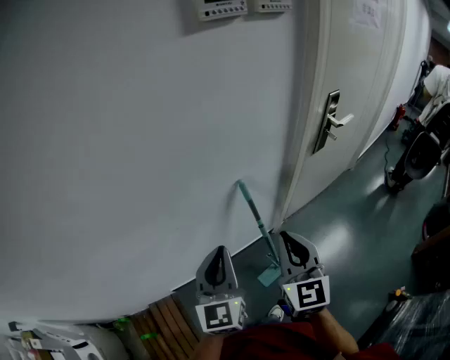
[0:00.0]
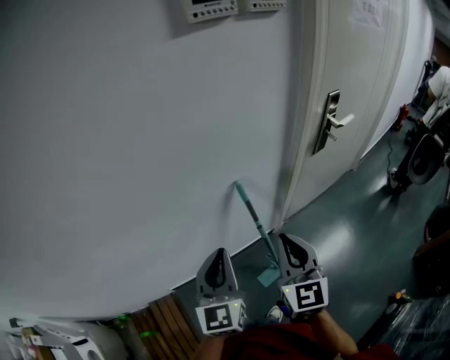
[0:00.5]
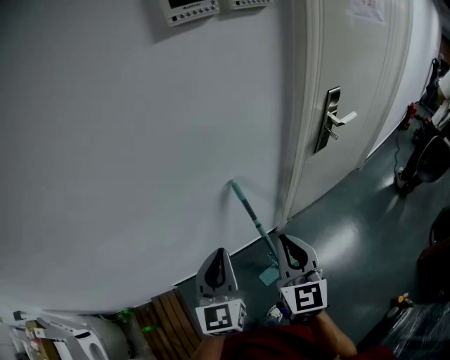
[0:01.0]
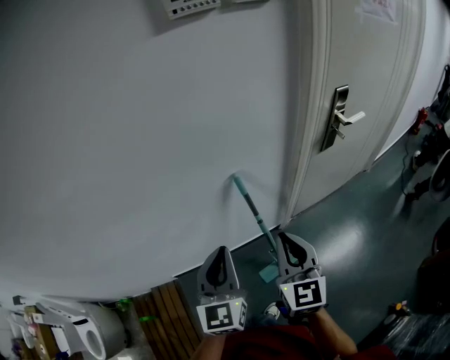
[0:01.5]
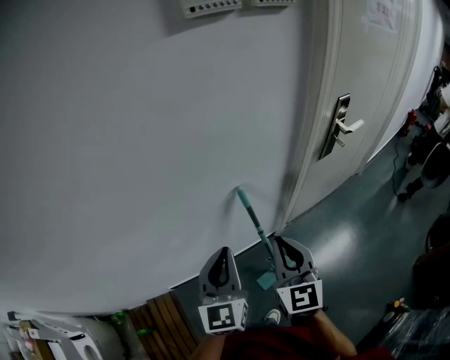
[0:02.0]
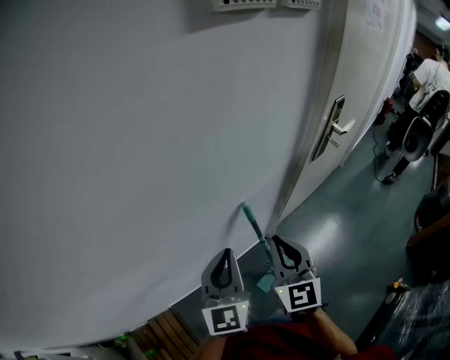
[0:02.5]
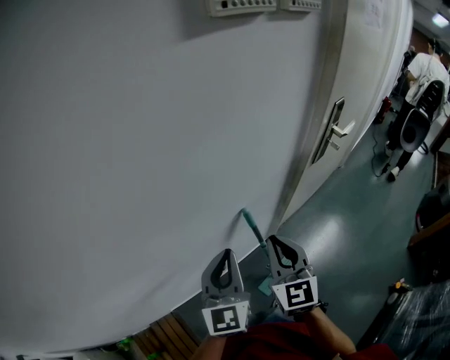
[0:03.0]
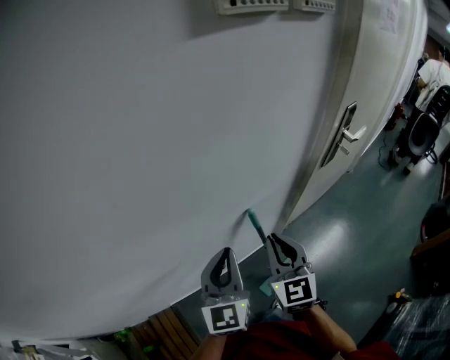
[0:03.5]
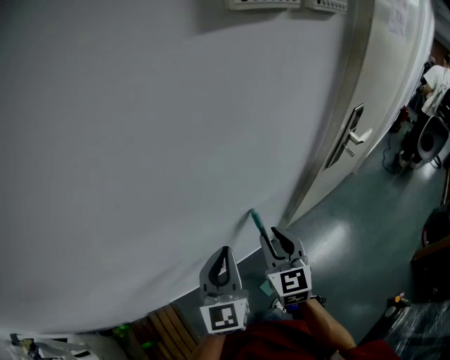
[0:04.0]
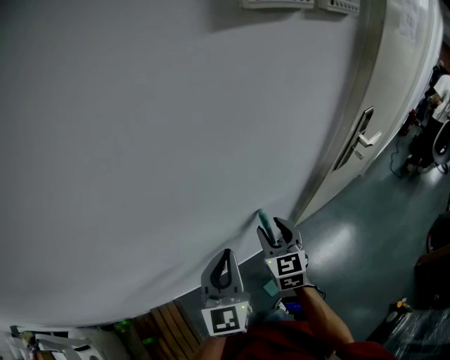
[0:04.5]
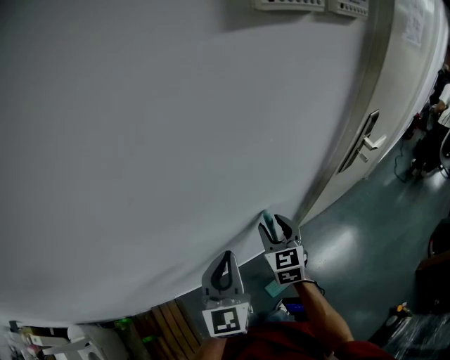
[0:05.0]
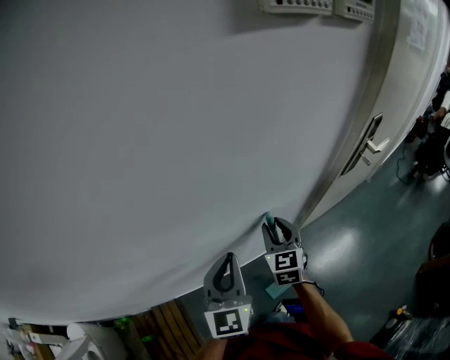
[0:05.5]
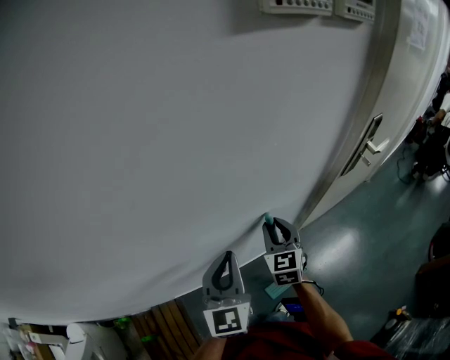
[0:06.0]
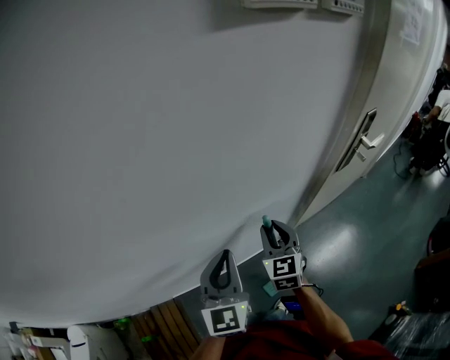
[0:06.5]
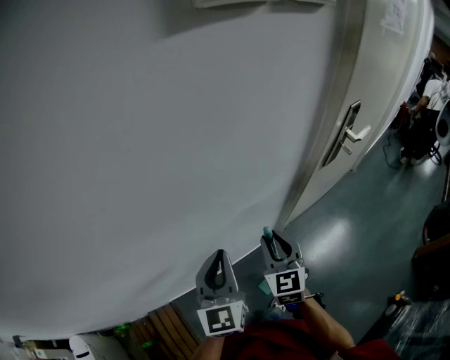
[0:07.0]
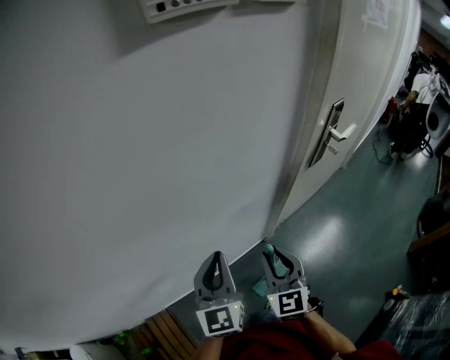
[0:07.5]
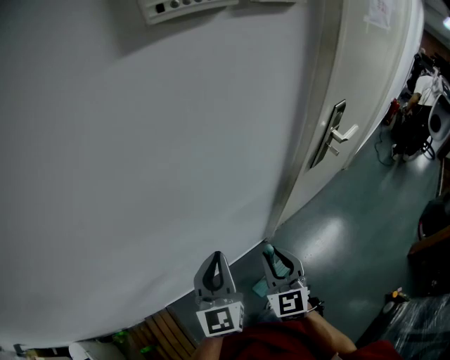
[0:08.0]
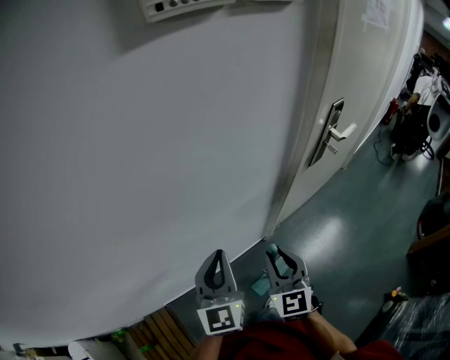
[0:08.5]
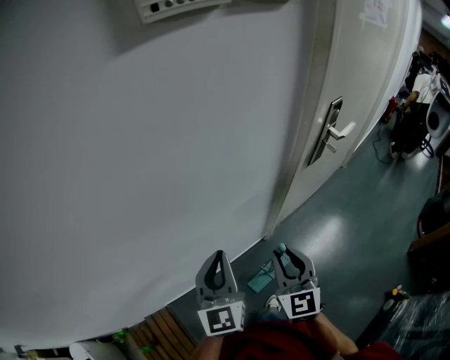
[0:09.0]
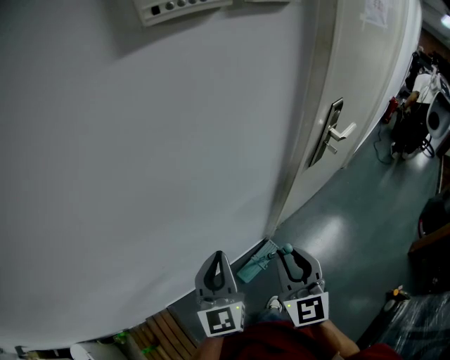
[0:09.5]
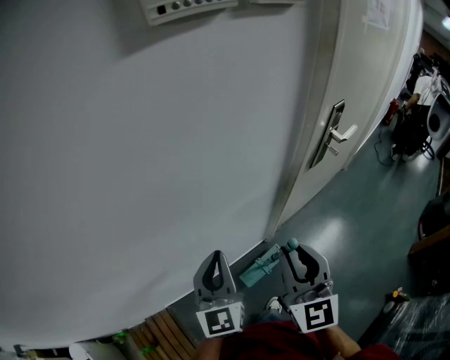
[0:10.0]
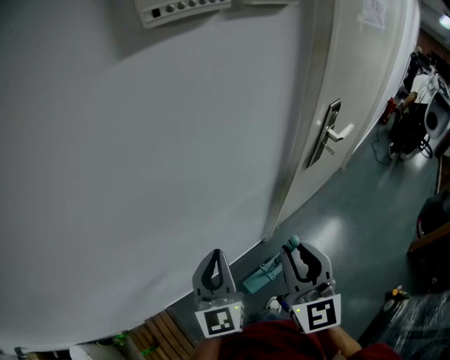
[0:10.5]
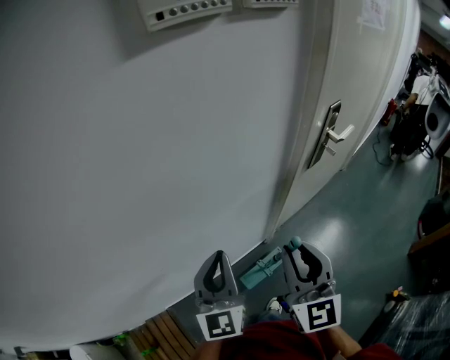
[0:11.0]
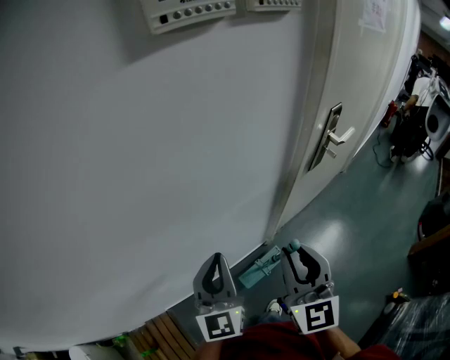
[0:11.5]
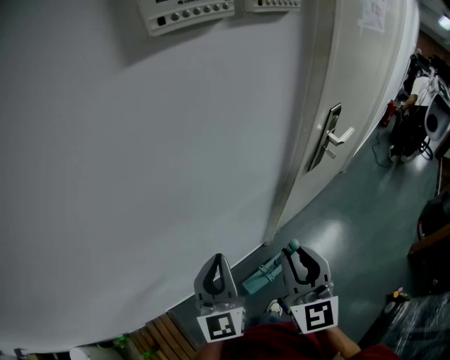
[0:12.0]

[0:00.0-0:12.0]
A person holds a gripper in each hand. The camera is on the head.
0:00.0 to 0:02.0: The left gripper moves some 5 cm; the right gripper moves about 5 cm.
0:02.0 to 0:04.0: The left gripper moves forward, roughly 10 cm, while the right gripper heads forward and to the left, covering some 15 cm, and opens up.
0:04.0 to 0:06.0: The right gripper is displaced forward and downward by roughly 10 cm.
0:06.0 to 0:08.0: The left gripper is displaced to the right by about 5 cm. The right gripper moves backward and to the right, some 15 cm.
0:08.0 to 0:10.0: The right gripper travels upward by roughly 10 cm.
0:10.0 to 0:12.0: There are only small adjustments of the grippers.

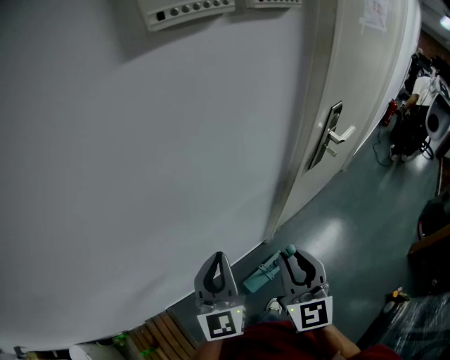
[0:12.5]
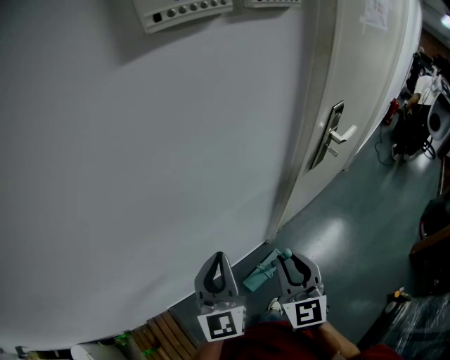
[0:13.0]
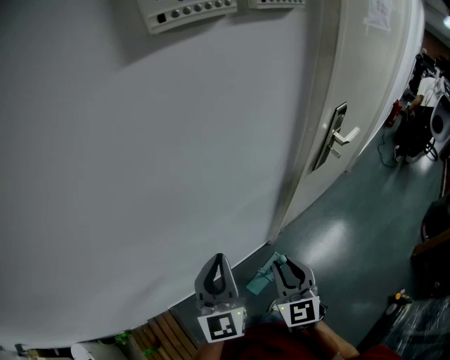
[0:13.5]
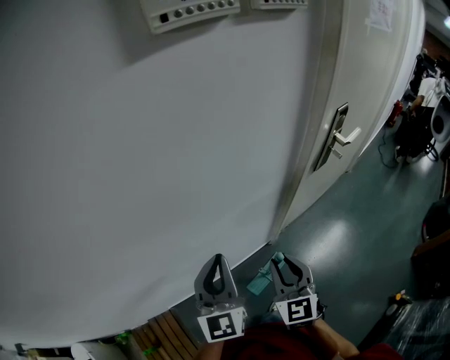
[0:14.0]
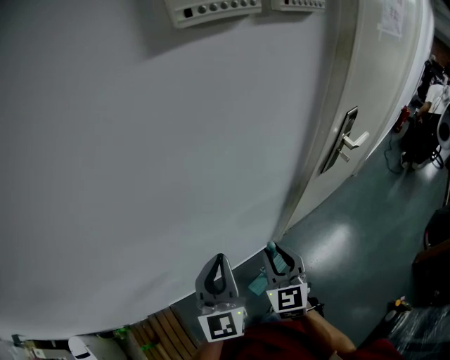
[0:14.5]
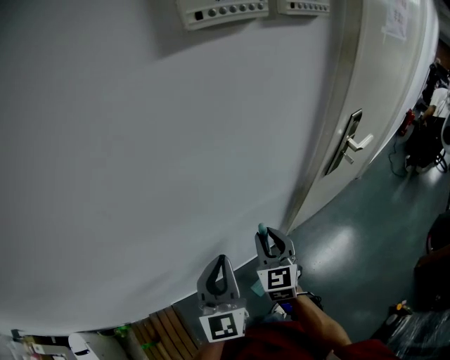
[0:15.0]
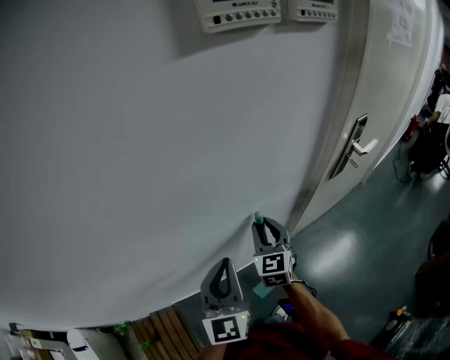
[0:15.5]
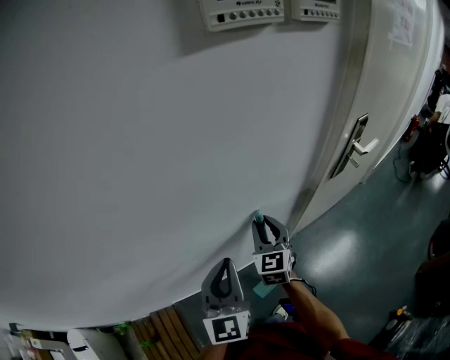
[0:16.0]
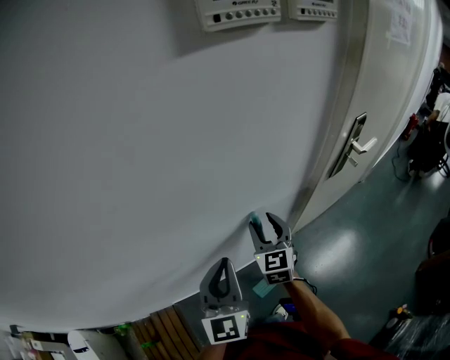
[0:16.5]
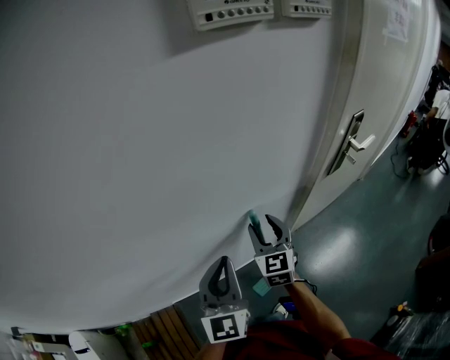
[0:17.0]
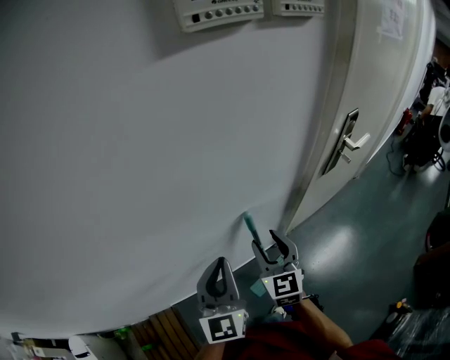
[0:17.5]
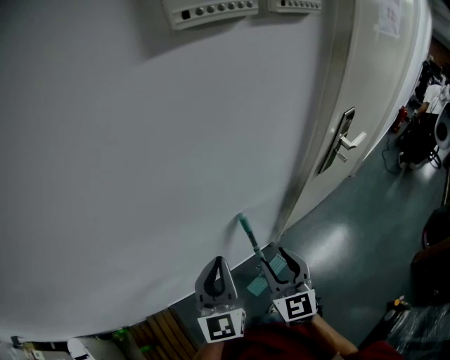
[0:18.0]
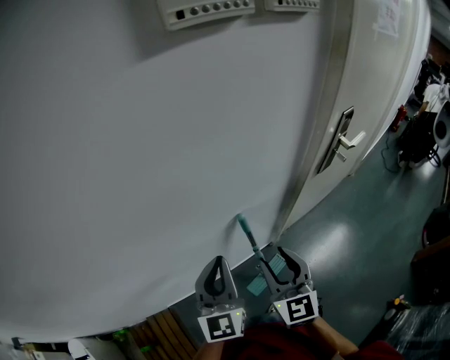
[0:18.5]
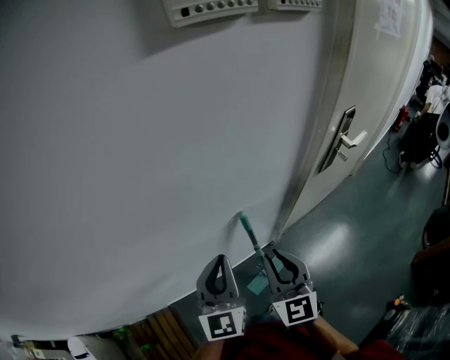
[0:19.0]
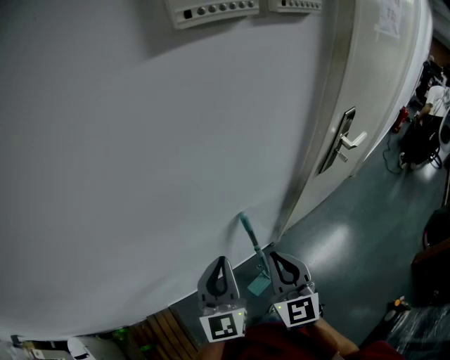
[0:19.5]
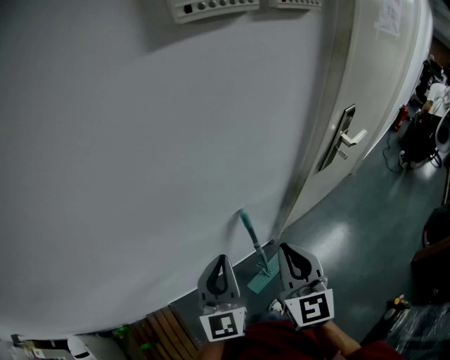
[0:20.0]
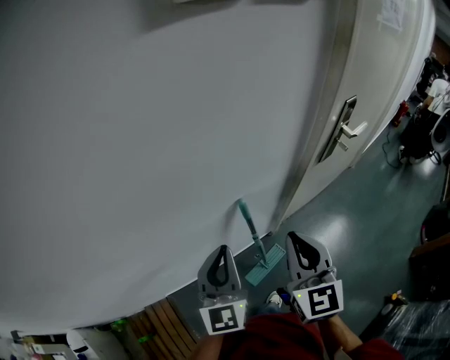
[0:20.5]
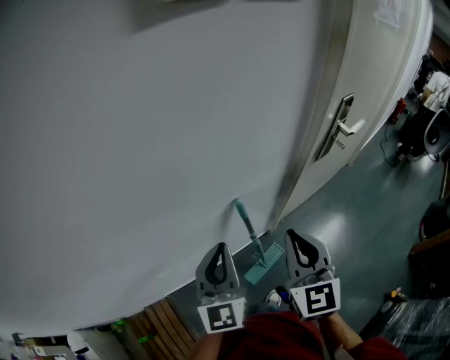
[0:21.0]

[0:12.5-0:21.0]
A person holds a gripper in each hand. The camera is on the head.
0:12.5 to 0:14.5: The right gripper moves downward, about 10 cm.
0:14.5 to 0:16.5: The right gripper goes approximately 10 cm forward, and opens its fingers.
0:16.5 to 0:19.0: The right gripper heads backward, covering some 10 cm, and closes.
0:19.0 to 0:21.0: The right gripper heads upward, covering some 5 cm.

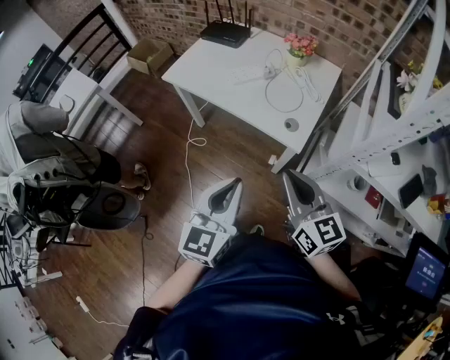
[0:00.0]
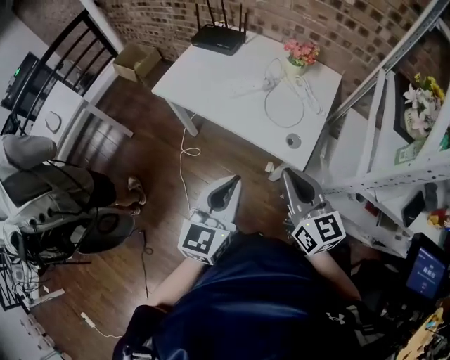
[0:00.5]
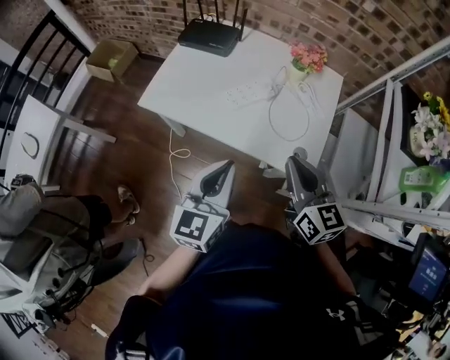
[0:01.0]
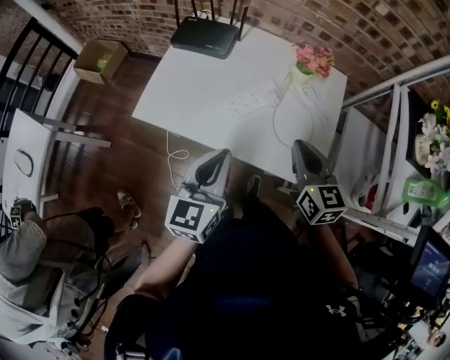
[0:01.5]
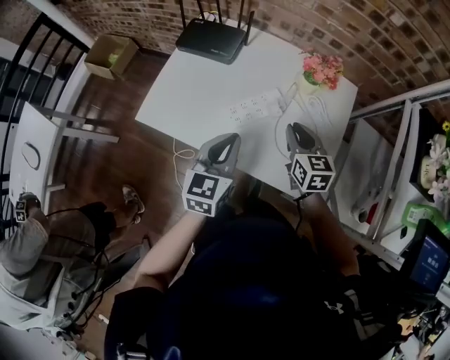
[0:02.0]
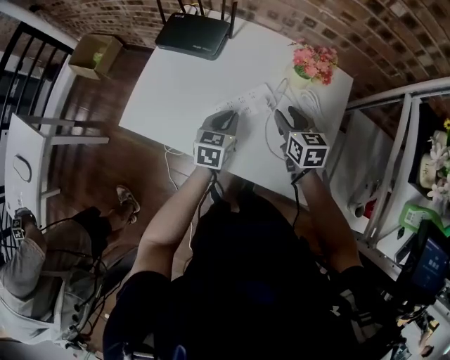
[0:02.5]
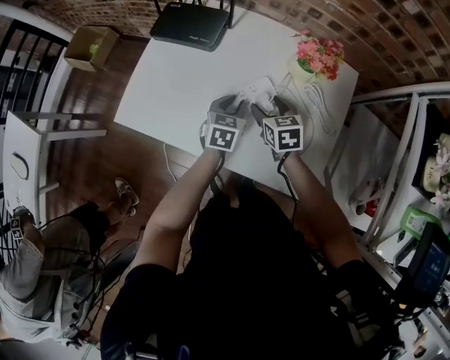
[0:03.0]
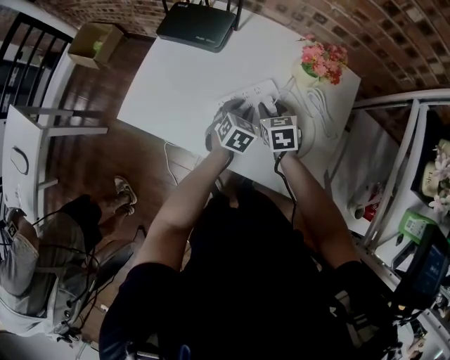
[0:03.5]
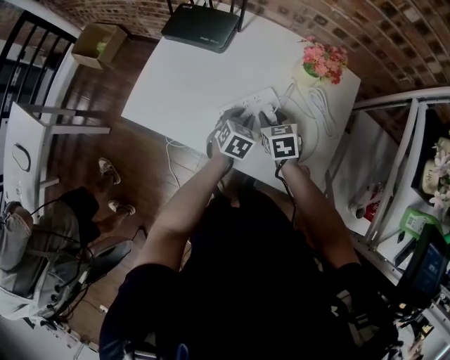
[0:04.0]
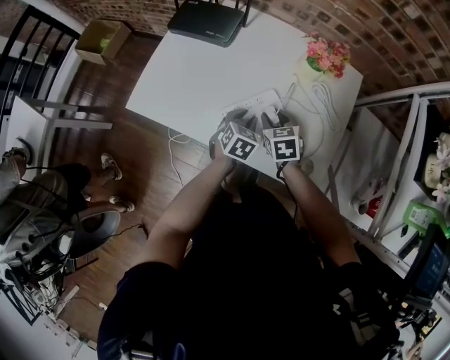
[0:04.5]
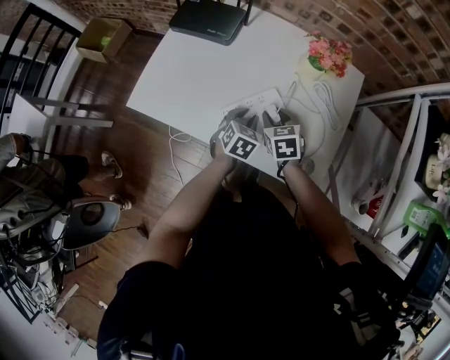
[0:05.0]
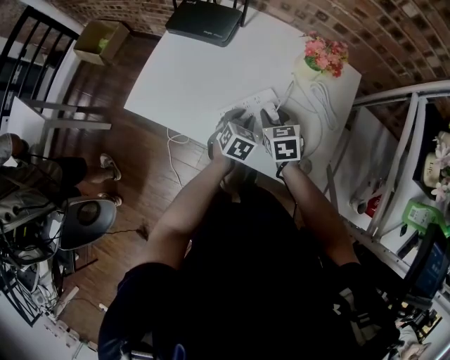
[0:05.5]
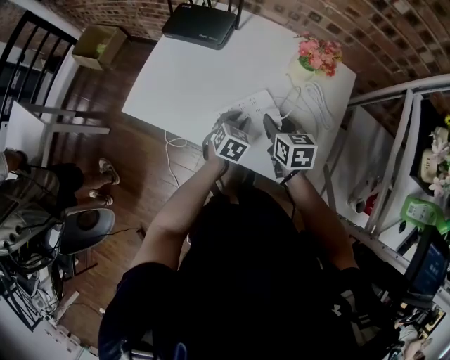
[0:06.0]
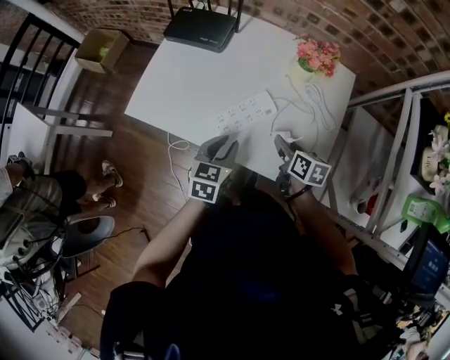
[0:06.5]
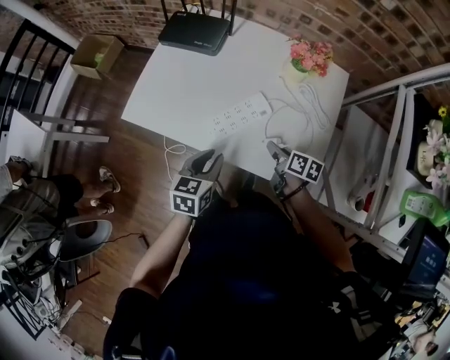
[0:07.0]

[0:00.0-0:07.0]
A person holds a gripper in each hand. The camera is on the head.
0:00.0 to 0:02.0: The two grippers travel together, forward, some 40 cm. The right gripper moves downward, about 20 cm, and changes its angle by roughly 30 degrees.
0:02.0 to 0:03.5: The right gripper moves downward and forward, some 15 cm, changes its angle by roughly 20 degrees, and opens, then closes again, while the left gripper shifts about 25 cm downward and forward, turns by roughly 30 degrees, and opens its fingers.
0:03.5 to 0:05.0: The grippers both shift backward by some 5 cm.
0:05.0 to 0:07.0: The right gripper is displaced backward and to the right by some 10 cm, and twists approximately 50 degrees clockwise, seen from behind; the left gripper travels backward, upward and to the left by some 15 cm, and changes its angle by about 20 degrees.
